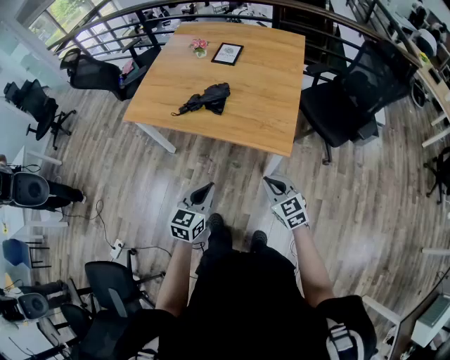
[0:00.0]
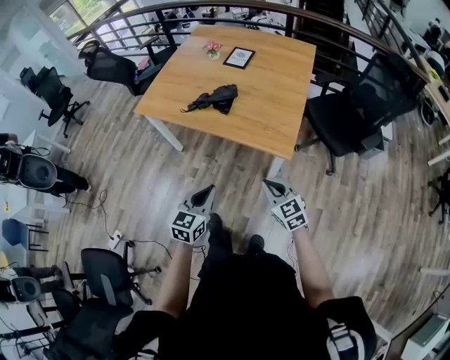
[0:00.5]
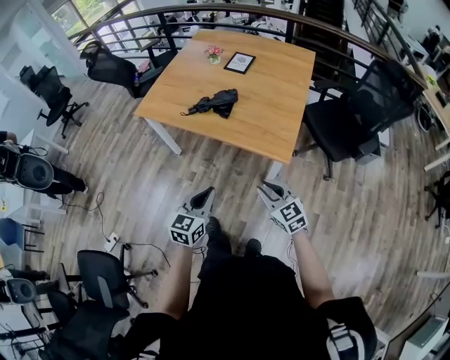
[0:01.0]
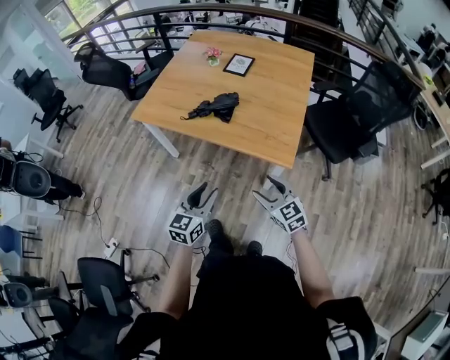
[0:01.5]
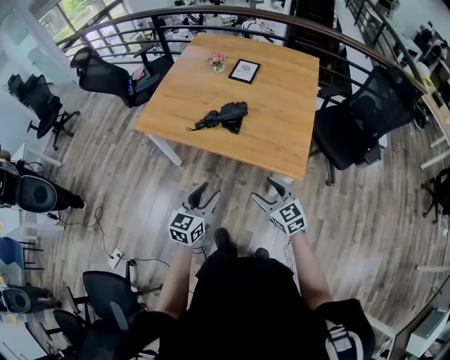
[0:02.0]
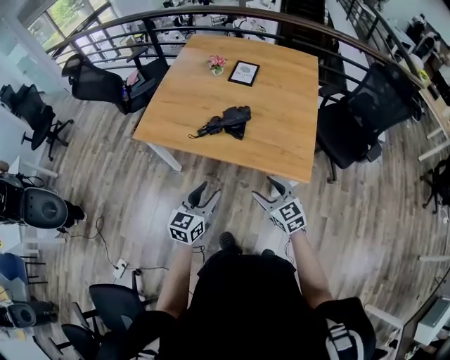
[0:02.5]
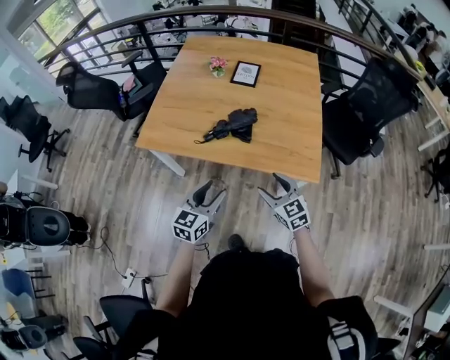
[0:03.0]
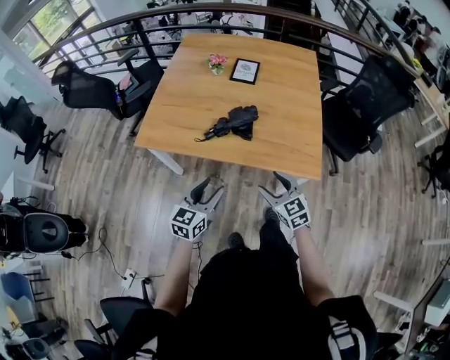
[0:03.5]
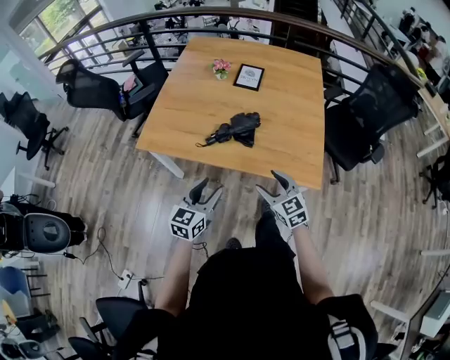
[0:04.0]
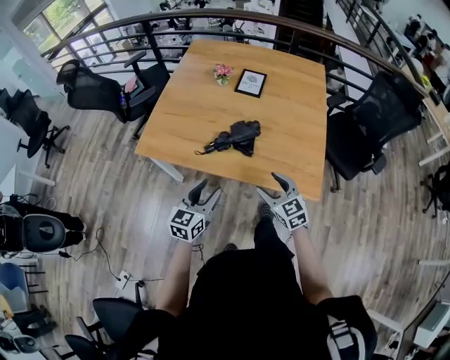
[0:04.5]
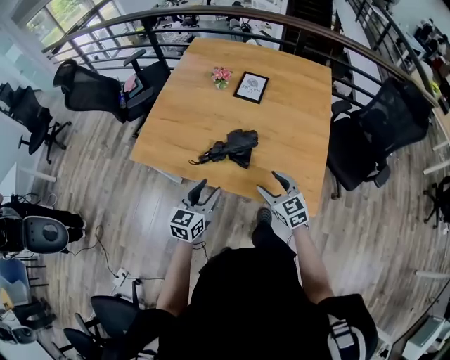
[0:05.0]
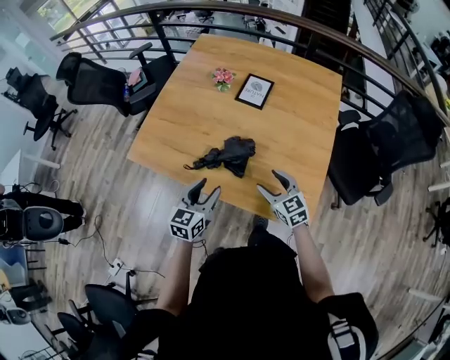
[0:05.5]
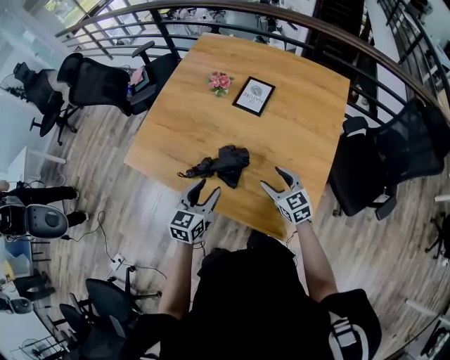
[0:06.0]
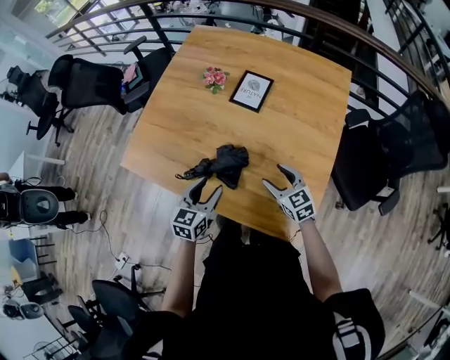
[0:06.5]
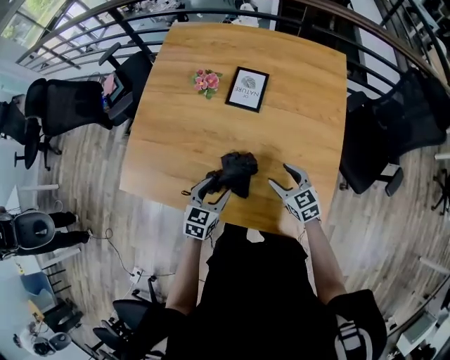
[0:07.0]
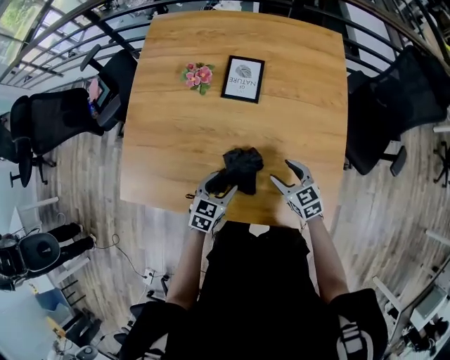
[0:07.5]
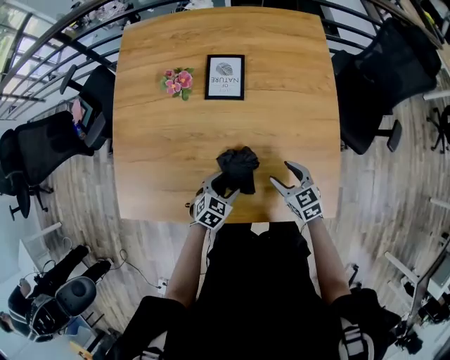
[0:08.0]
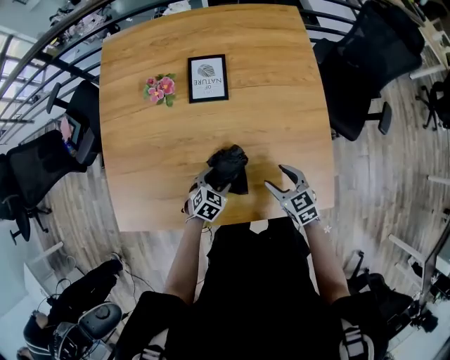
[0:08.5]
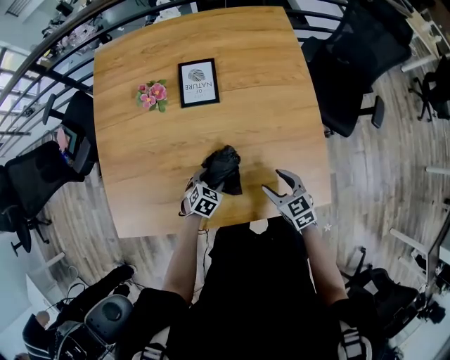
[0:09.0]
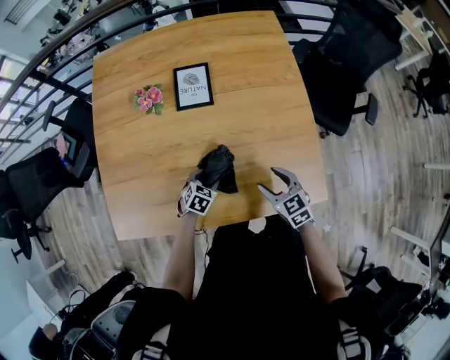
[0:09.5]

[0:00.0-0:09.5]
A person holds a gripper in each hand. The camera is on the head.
0:00.0 to 0:02.0: The grippers both shift to the left and forward by some 10 cm. The left gripper opens its fingers; the right gripper opens up.
0:02.0 to 0:04.0: Both grippers move forward and to the left, approximately 15 cm.
0:04.0 to 0:05.5: The grippers both shift forward and to the right by roughly 20 cm.
0:05.5 to 0:07.5: The two grippers go some 15 cm forward and downward. The left gripper swivels about 30 degrees.
0:07.5 to 0:09.5: The left gripper travels downward by approximately 10 cm, and swivels roughly 30 degrees. The right gripper heads backward, covering roughly 5 cm.

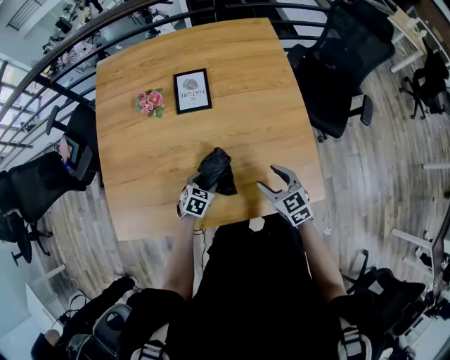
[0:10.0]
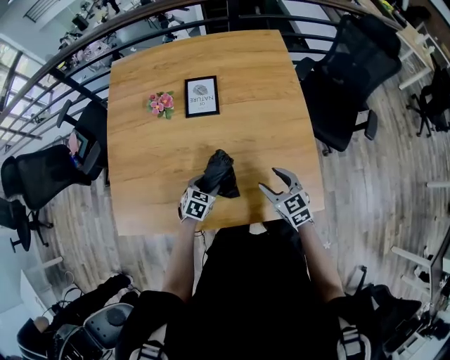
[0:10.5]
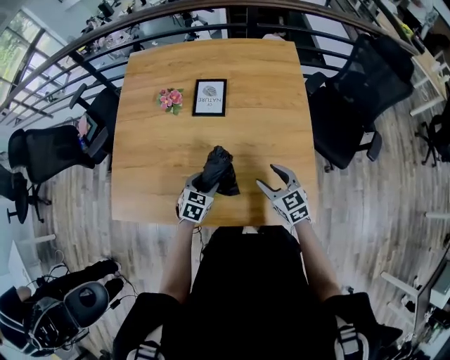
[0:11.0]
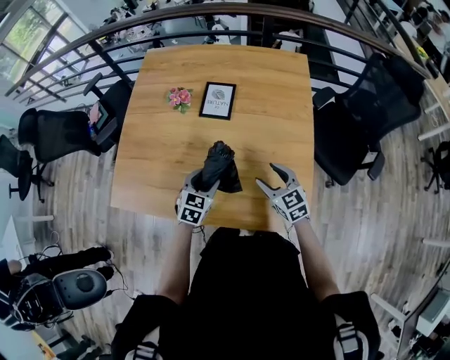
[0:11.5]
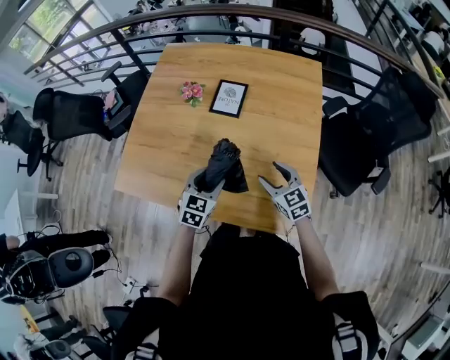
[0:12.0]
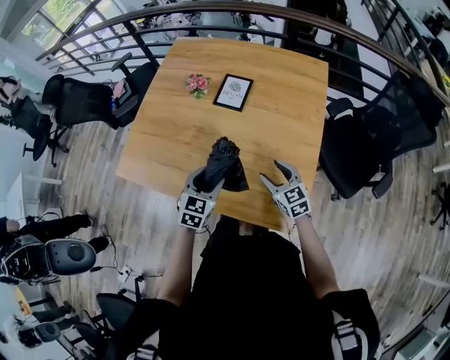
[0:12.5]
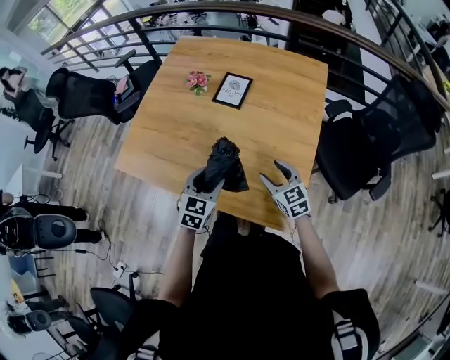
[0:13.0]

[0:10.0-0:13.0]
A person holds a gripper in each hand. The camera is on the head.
0:10.0 to 0:11.5: The right gripper shifts about 5 cm forward, while the left gripper moves upward, roughly 15 cm, and swivels about 30 degrees.
0:11.5 to 0:13.0: The right gripper changes place by about 5 cm, while the left gripper travels backward and upward by roughly 10 cm.

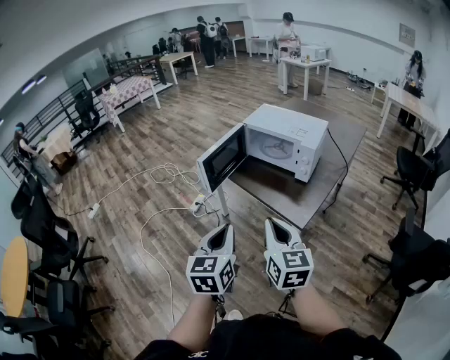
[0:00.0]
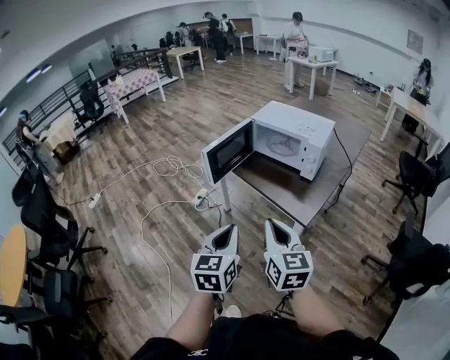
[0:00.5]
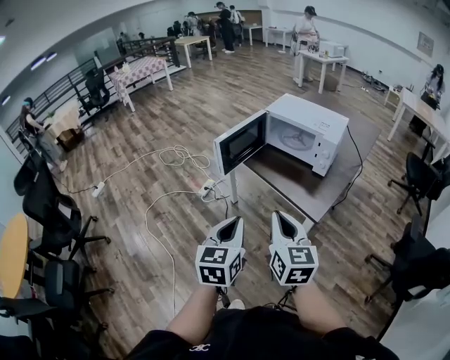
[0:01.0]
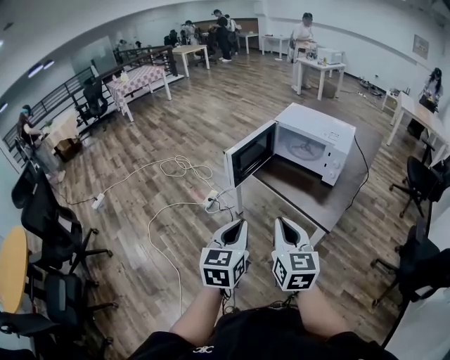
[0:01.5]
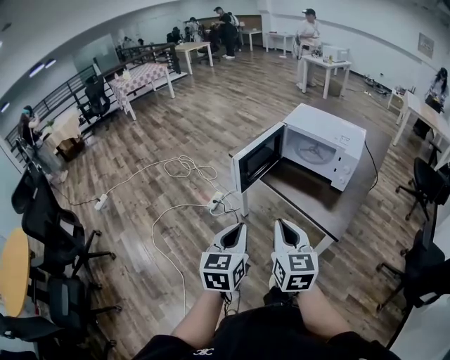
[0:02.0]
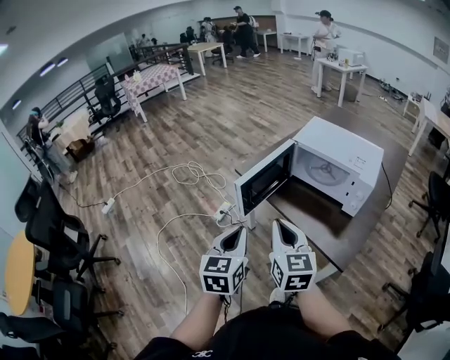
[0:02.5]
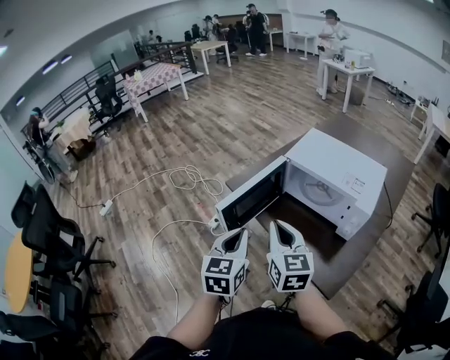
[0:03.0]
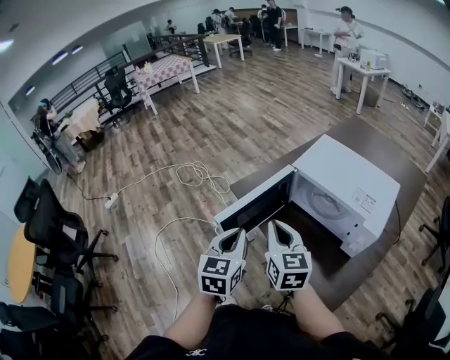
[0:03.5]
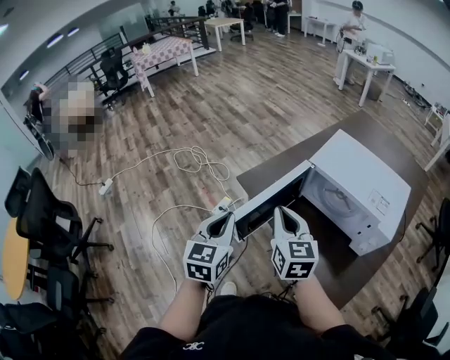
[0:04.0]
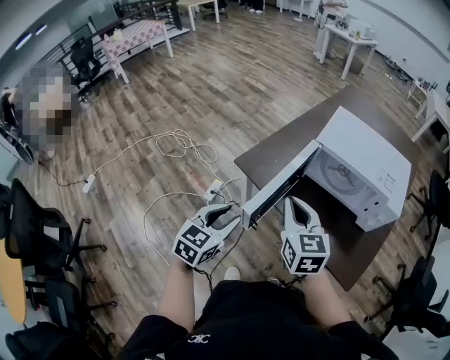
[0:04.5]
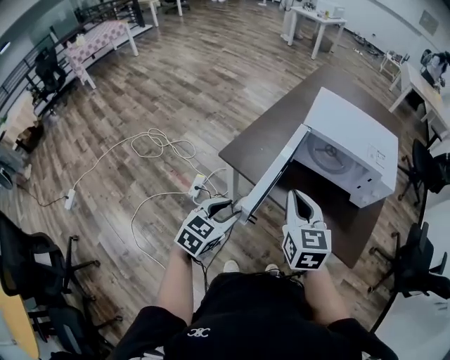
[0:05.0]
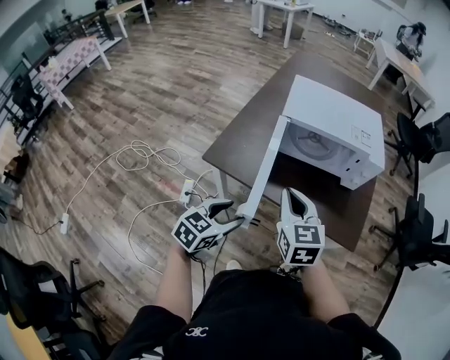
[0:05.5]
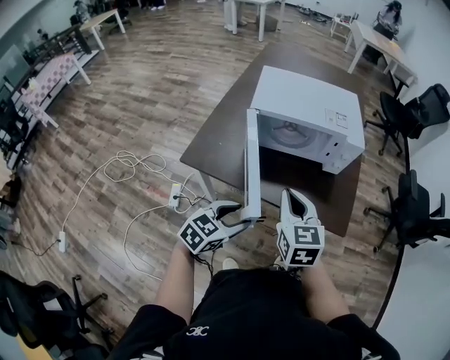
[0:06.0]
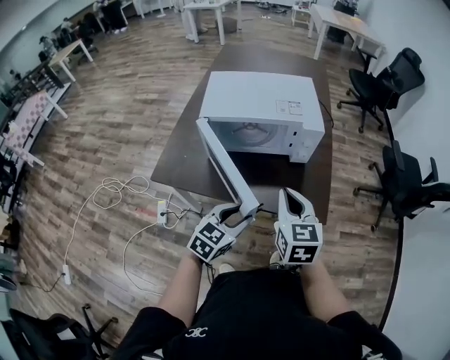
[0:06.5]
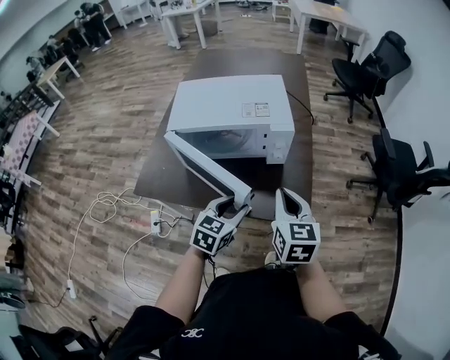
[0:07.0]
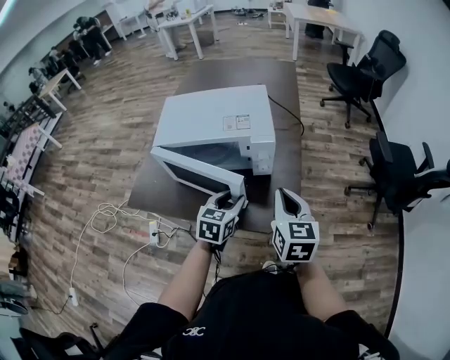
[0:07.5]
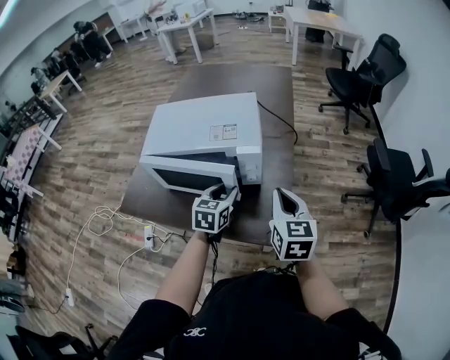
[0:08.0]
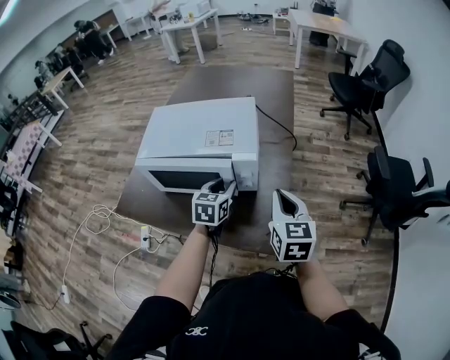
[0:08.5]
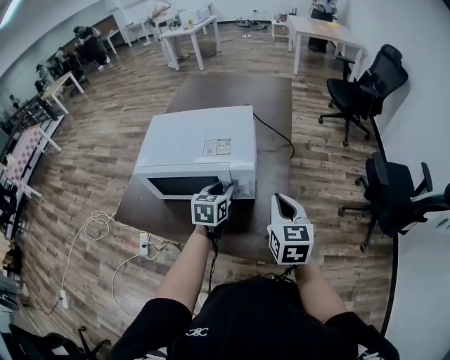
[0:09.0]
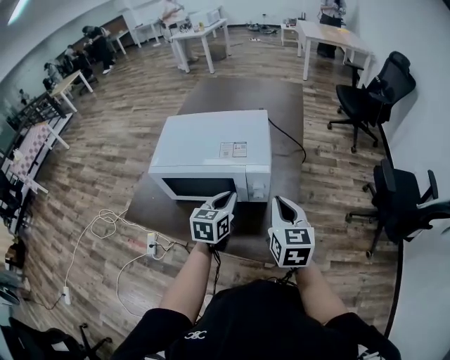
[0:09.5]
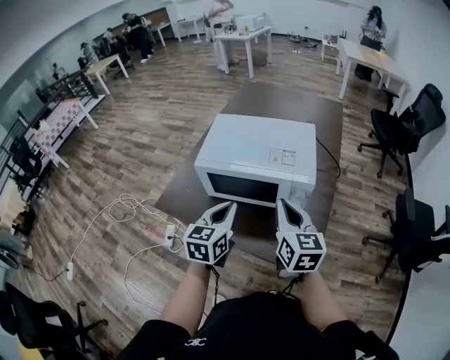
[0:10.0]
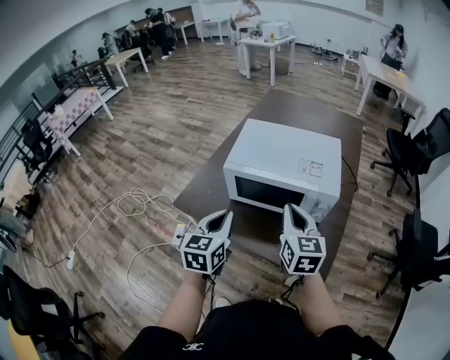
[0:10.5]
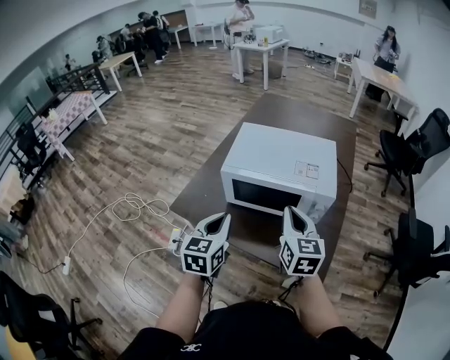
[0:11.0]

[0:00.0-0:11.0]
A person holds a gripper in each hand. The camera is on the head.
0:00.0 to 0:02.0: Both grippers move to the left and forward, about 15 cm.
0:02.0 to 0:03.5: Both grippers move forward, some 30 cm.
0:03.5 to 0:05.5: The left gripper heads downward, covering about 15 cm, turns by about 60 degrees, and opens. Meanwhile the right gripper heads downward, covering about 5 cm, and swivels approximately 30 degrees.
0:05.5 to 0:07.5: Both grippers move to the right and forward, some 35 cm. The right gripper changes its angle by approximately 20 degrees.
0:07.5 to 0:09.0: The right gripper heads forward and to the right, covering approximately 10 cm. Meanwhile the left gripper travels forward by some 15 cm.
0:09.0 to 0:11.0: The right gripper shifts about 25 cm to the left. Meanwhile the left gripper goes some 35 cm to the left, backward and upward, and closes.

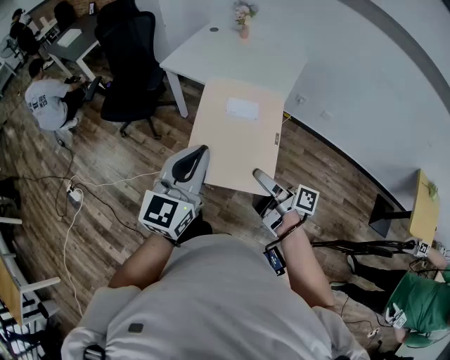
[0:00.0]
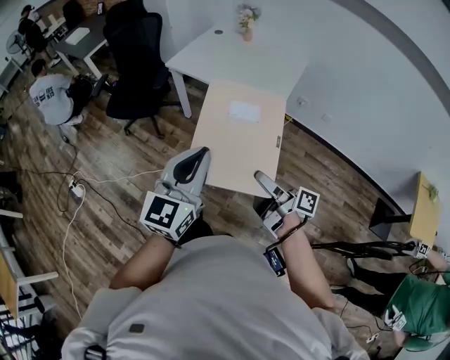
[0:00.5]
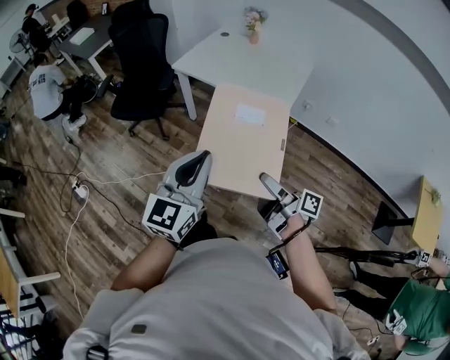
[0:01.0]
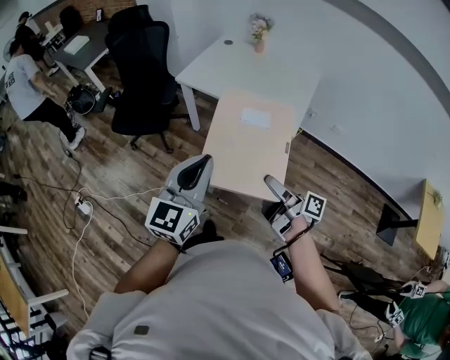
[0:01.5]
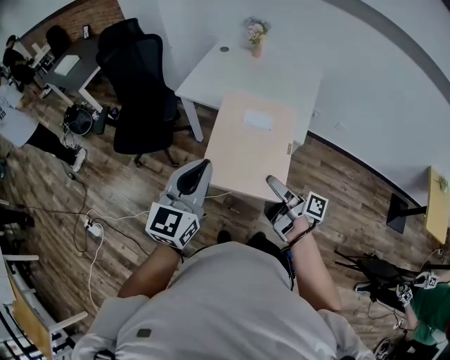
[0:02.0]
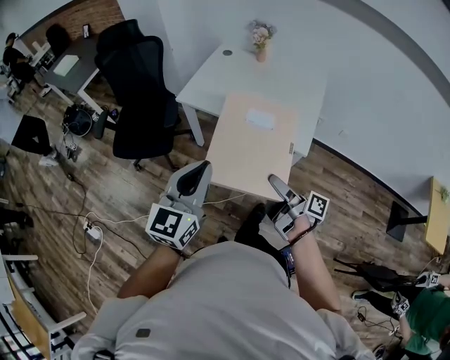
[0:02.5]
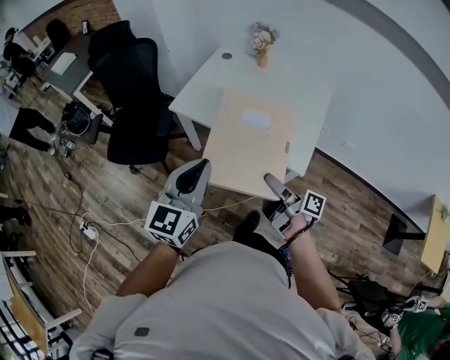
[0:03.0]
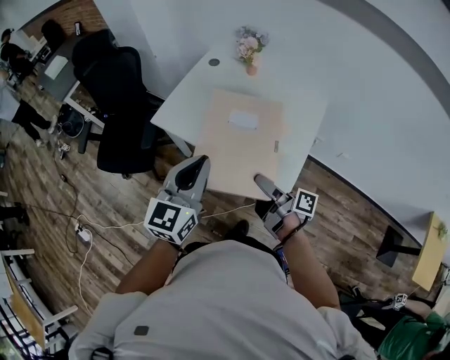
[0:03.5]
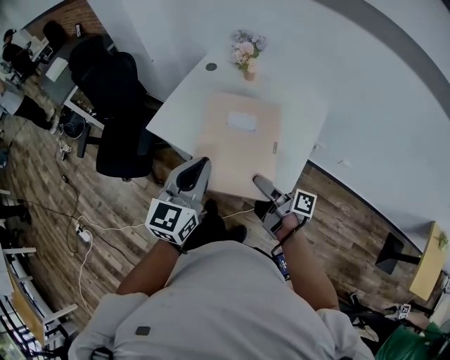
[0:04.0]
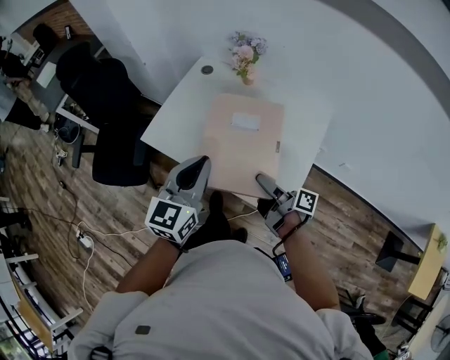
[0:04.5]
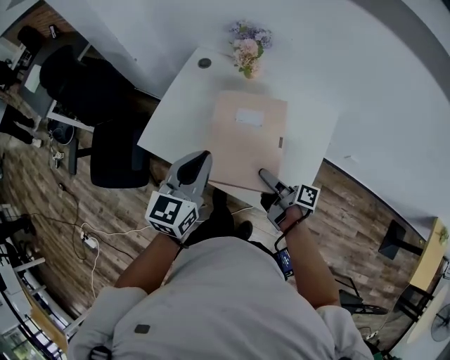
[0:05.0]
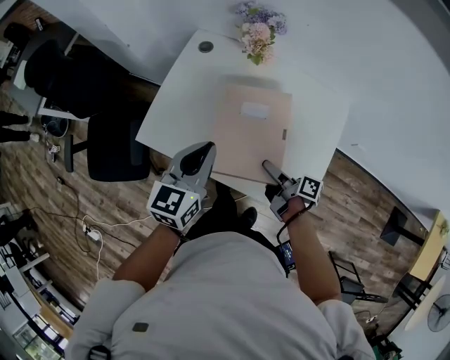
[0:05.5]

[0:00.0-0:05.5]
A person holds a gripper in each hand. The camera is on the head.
0:00.0 to 0:02.0: Both grippers travel together forward and to the left, approximately 20 cm.
0:02.0 to 0:03.5: The two grippers go some 30 cm forward and to the right.
0:03.5 to 0:05.5: The grippers both shift forward and downward by some 30 cm.
